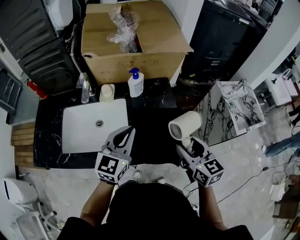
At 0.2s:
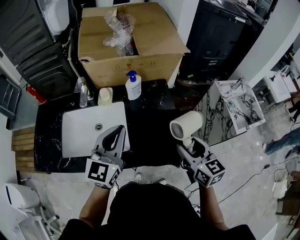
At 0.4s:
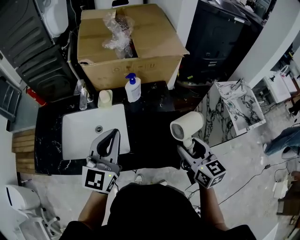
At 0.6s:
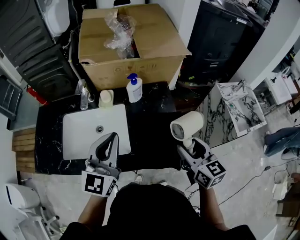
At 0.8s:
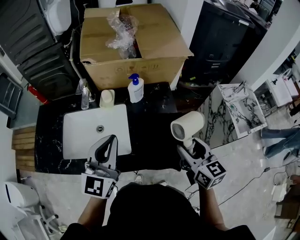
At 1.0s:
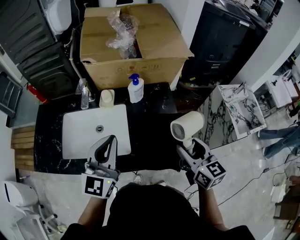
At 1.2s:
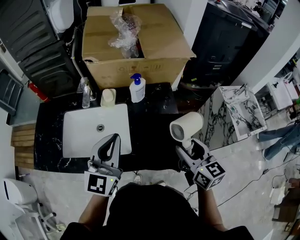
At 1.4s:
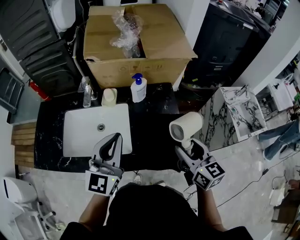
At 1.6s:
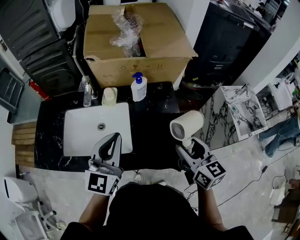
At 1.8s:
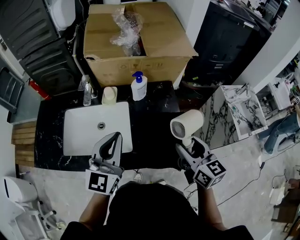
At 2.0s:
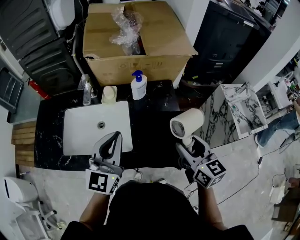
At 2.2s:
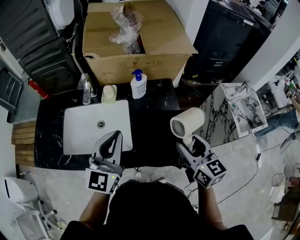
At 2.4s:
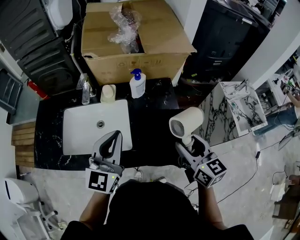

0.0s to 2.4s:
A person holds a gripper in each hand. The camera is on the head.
0.0s to 1.2s: The left gripper goes roughly 10 cm upward and to the left.
1.2s to 2.4s: Neither gripper changes place.

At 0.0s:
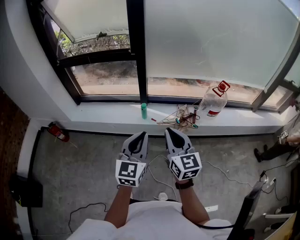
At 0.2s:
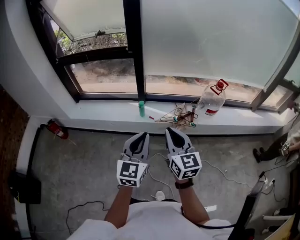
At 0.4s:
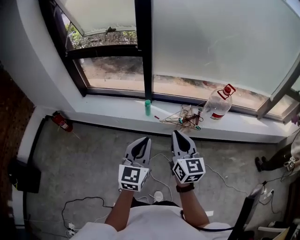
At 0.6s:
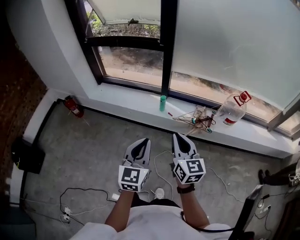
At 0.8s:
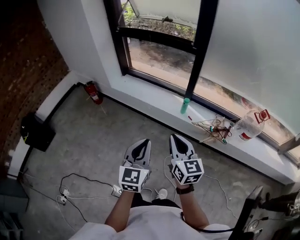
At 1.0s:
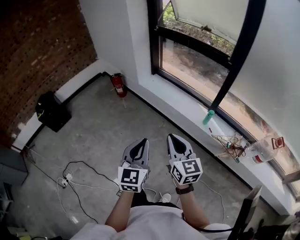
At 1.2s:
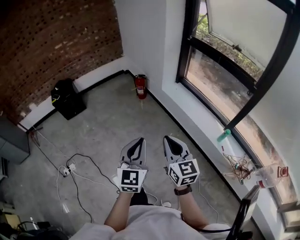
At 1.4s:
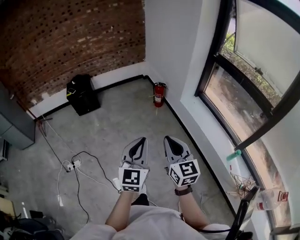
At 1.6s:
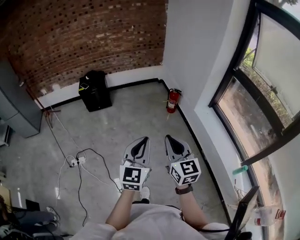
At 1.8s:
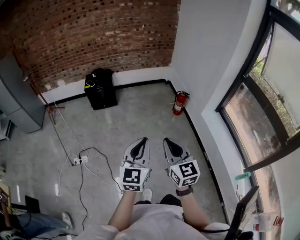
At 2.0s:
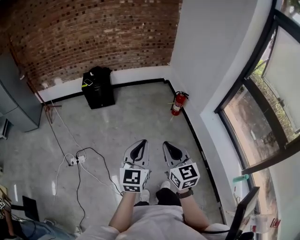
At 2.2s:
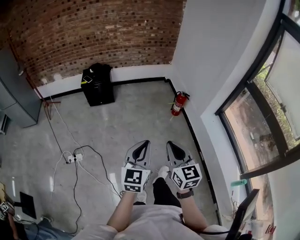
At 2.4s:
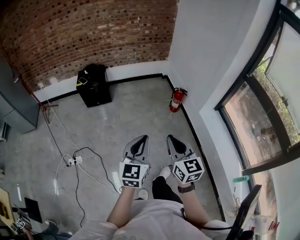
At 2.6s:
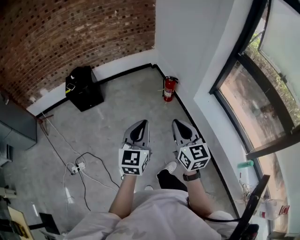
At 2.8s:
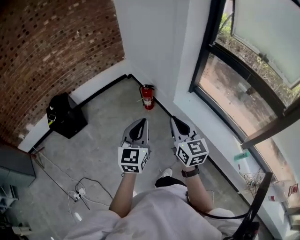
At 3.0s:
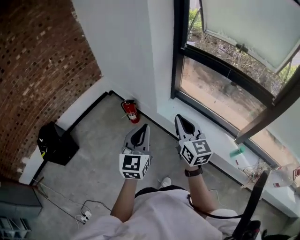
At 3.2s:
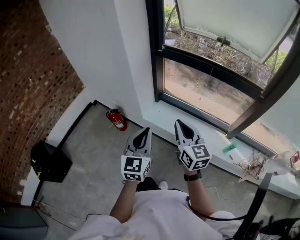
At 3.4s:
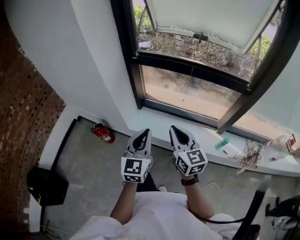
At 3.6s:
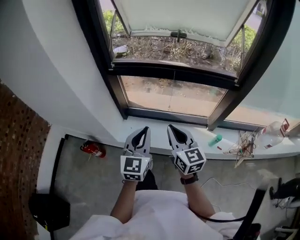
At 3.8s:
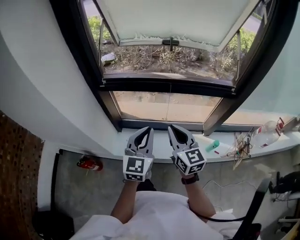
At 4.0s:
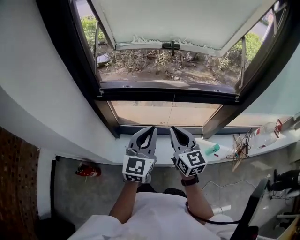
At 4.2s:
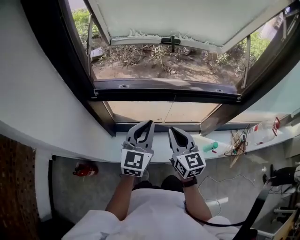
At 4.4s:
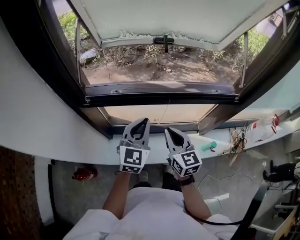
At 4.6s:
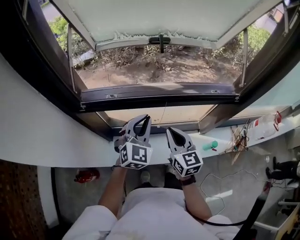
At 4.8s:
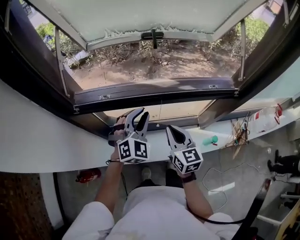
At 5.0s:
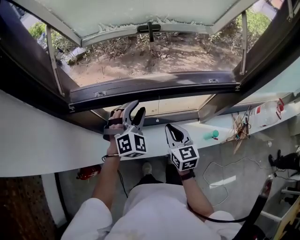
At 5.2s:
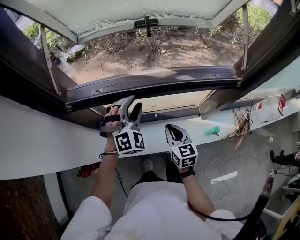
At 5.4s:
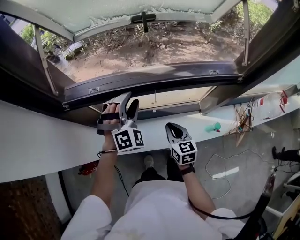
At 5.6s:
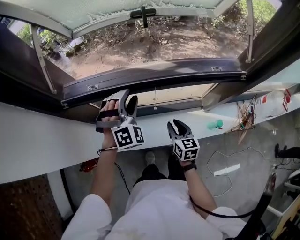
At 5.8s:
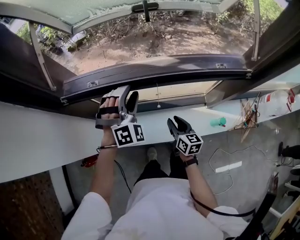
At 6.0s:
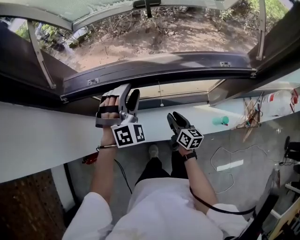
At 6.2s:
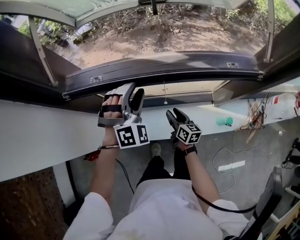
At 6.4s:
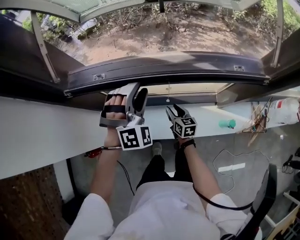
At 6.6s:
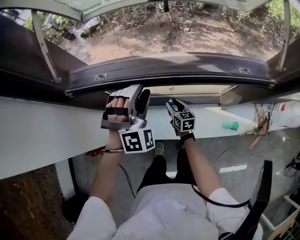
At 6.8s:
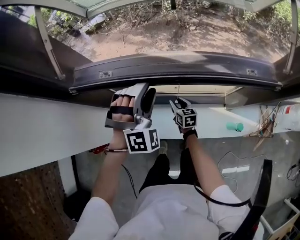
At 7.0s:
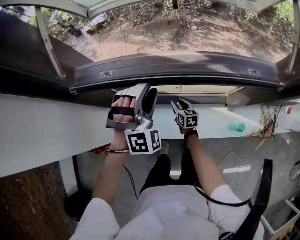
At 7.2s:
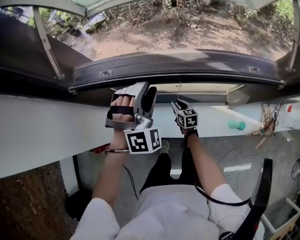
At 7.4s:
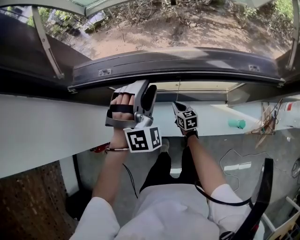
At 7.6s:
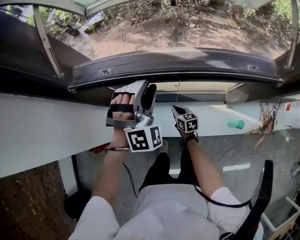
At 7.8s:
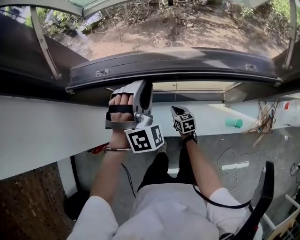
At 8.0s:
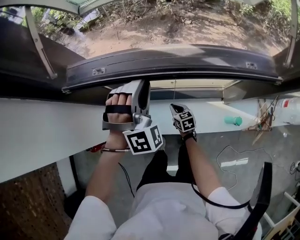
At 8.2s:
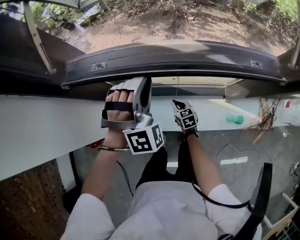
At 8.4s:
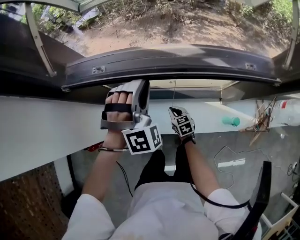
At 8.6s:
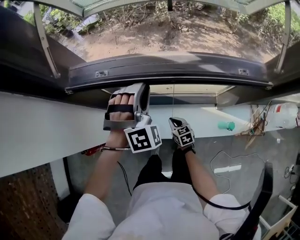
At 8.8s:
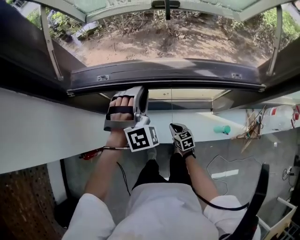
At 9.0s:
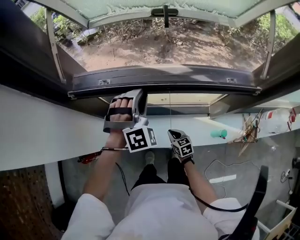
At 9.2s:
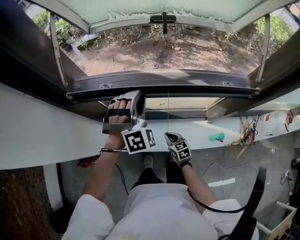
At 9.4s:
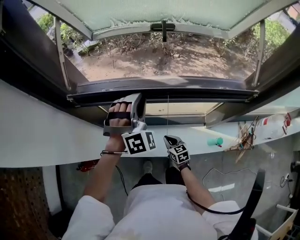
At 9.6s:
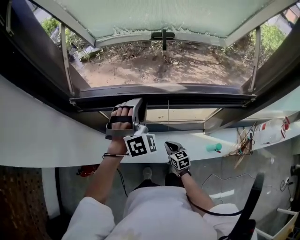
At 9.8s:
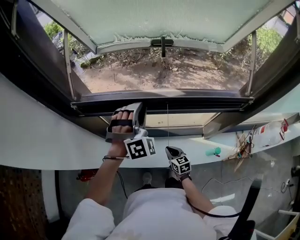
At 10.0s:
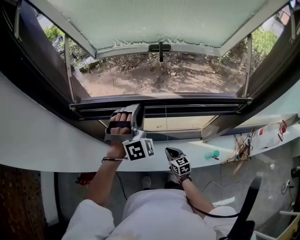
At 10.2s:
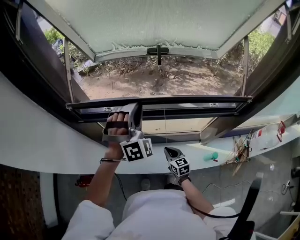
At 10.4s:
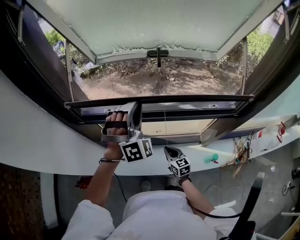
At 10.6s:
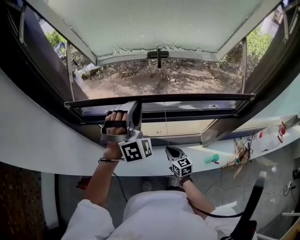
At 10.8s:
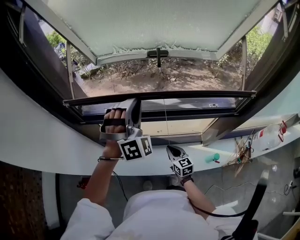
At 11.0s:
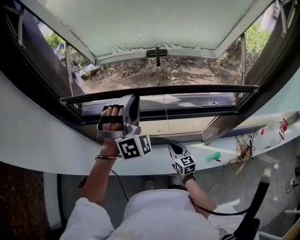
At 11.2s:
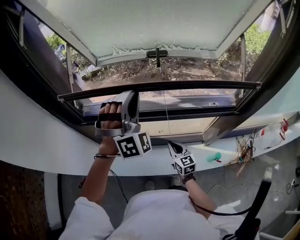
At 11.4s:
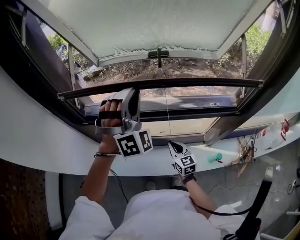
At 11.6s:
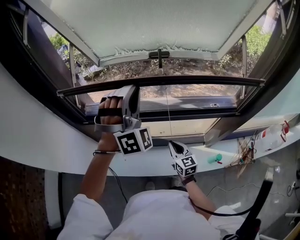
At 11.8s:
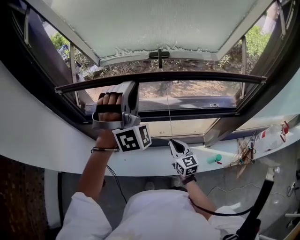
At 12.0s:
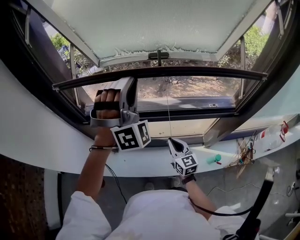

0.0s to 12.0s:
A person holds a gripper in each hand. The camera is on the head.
0.0s to 1.6s: The pair of grippers is taken some 60 cm. The right gripper swivels some 70 degrees. Meanwhile the left gripper turns by approximately 70 degrees.
1.6s to 3.0s: The two grippers travel together, roughly 50 cm. The right gripper changes its angle by roughly 30 degrees, while the left gripper rotates roughly 30 degrees.
3.0s to 4.4s: The pair of grippers is taken some 50 cm. The left gripper swivels roughly 50 degrees; the right gripper swivels about 40 degrees.
4.4s to 6.0s: The right gripper travels downward by roughly 25 cm, swivels some 40 degrees, and opens its fingers; the left gripper shifts roughly 15 cm forward and downward, rotates around the line of its fingers by approximately 60 degrees, clockwise from behind, and opens.
6.0s to 7.6s: The right gripper is displaced downward, to the left and forward by about 15 cm, changes its angle by roughly 30 degrees, and closes its fingers.
7.6s to 9.0s: The left gripper closes up; the right gripper shifts roughly 10 cm backward.
9.0s to 10.4s: Both grippers move upward, approximately 10 cm.
10.4s to 12.0s: The grippers both shift upward by about 15 cm.

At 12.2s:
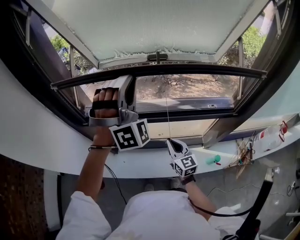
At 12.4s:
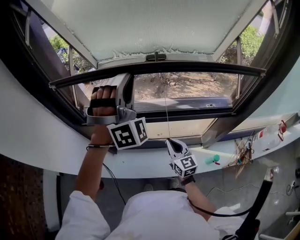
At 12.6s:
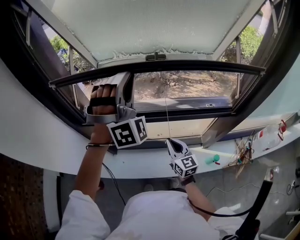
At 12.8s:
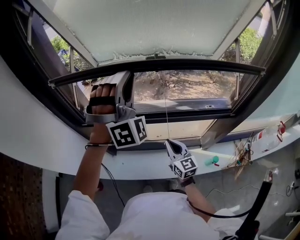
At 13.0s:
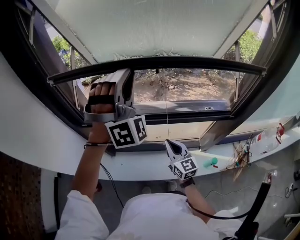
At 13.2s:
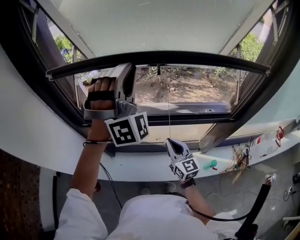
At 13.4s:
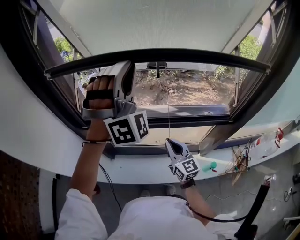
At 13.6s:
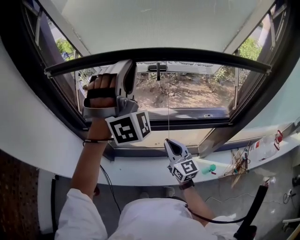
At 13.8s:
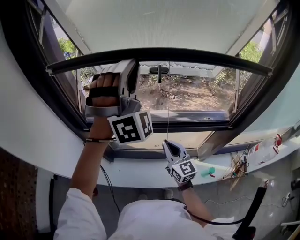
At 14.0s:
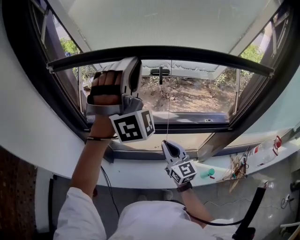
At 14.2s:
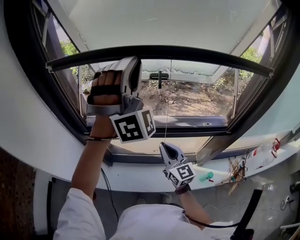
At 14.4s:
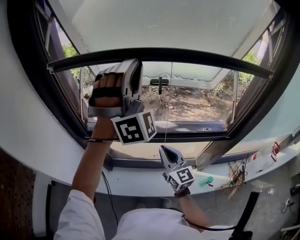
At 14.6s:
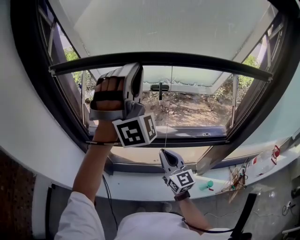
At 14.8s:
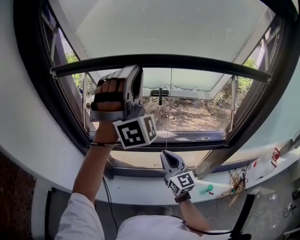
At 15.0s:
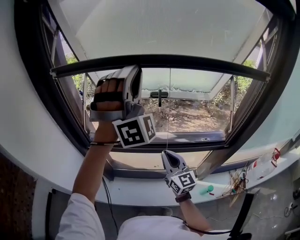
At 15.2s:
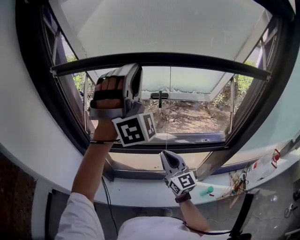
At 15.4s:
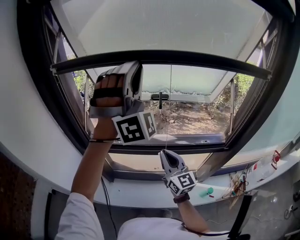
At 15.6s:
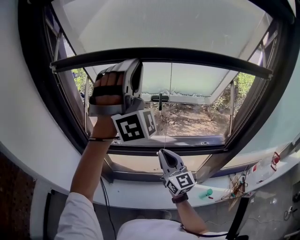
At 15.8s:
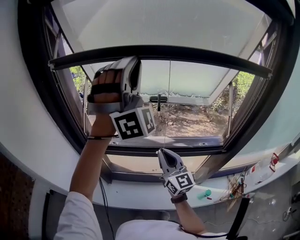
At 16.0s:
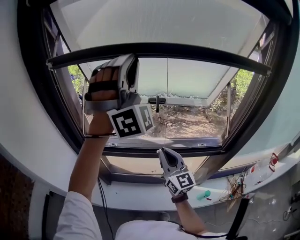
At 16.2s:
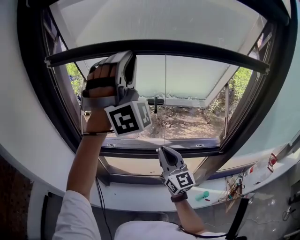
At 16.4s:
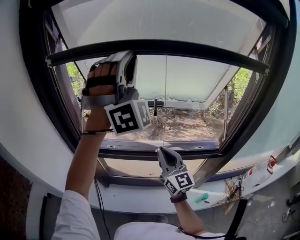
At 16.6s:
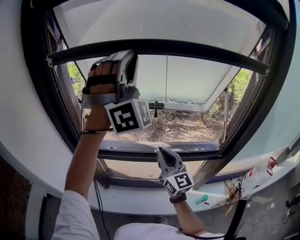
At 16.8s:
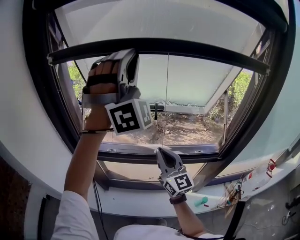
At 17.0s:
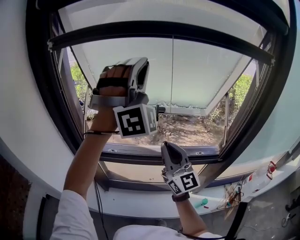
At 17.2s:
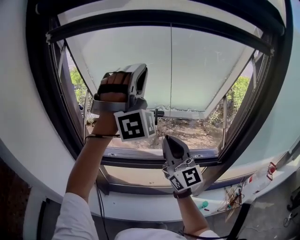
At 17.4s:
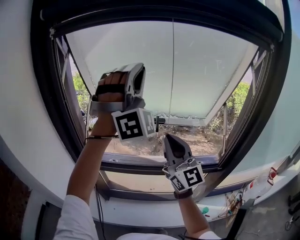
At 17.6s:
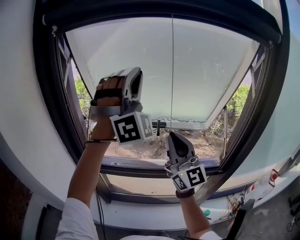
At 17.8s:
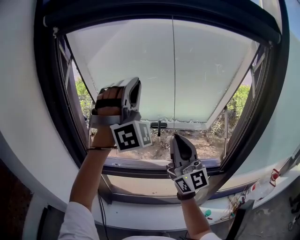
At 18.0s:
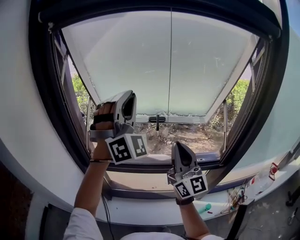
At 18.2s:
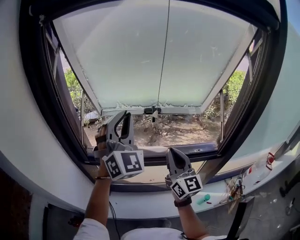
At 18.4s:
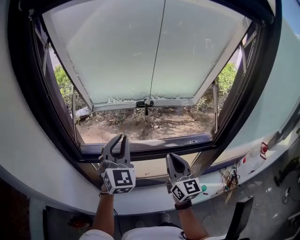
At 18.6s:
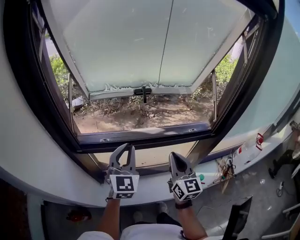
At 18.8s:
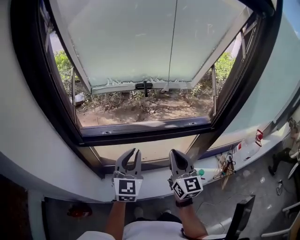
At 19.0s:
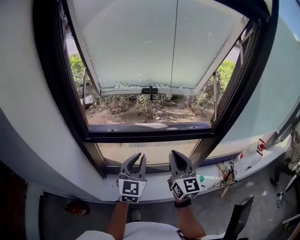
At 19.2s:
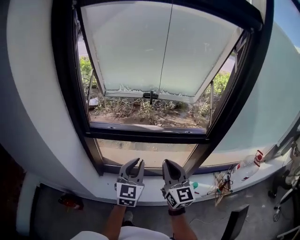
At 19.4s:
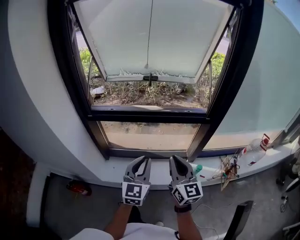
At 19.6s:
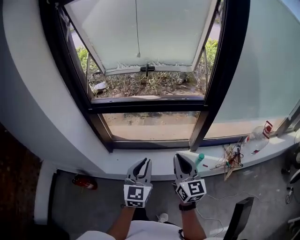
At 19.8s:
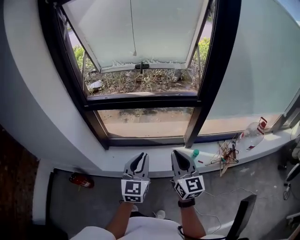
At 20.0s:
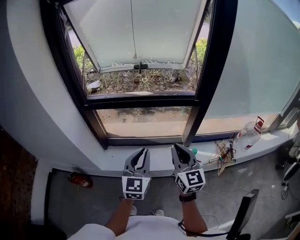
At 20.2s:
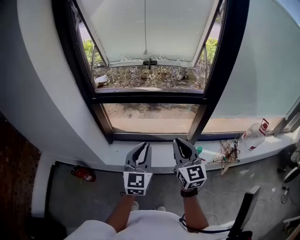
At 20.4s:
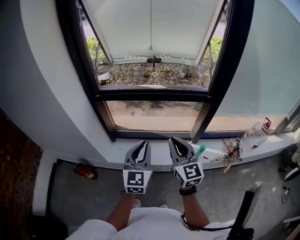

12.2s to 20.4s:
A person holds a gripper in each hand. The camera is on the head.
12.2s to 13.8s: Both grippers travel together upward, roughly 10 cm.
13.8s to 15.4s: Both grippers travel together upward, some 10 cm.
15.4s to 17.2s: The left gripper goes approximately 5 cm upward; the right gripper shifts about 20 cm upward, and swivels approximately 20 degrees.
17.2s to 18.8s: The left gripper is displaced downward by some 35 cm, and twists about 80 degrees counterclockwise, seen from behind. Meanwhile the right gripper is displaced downward and backward by roughly 20 cm, and changes its angle by roughly 30 degrees.
18.8s to 20.4s: The two grippers go roughly 25 cm backward.

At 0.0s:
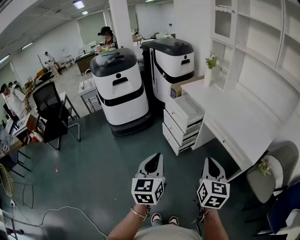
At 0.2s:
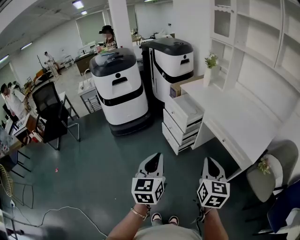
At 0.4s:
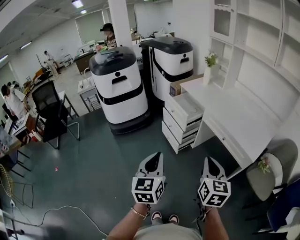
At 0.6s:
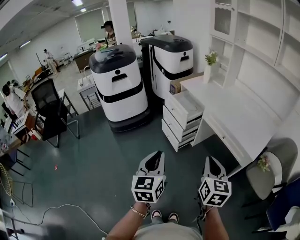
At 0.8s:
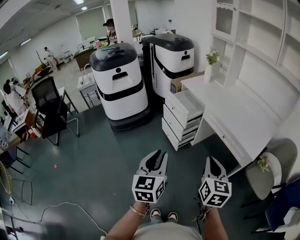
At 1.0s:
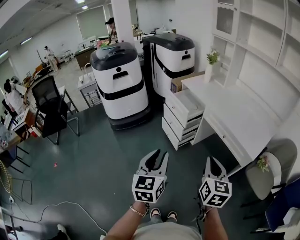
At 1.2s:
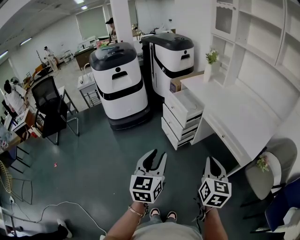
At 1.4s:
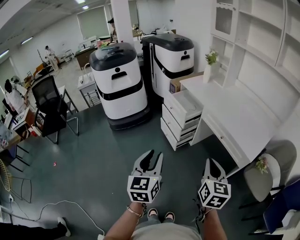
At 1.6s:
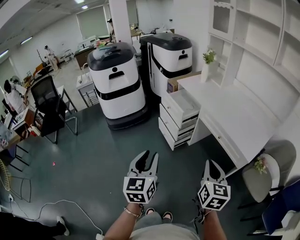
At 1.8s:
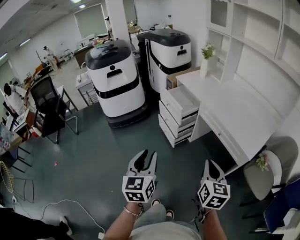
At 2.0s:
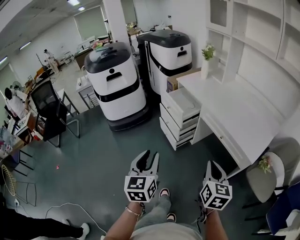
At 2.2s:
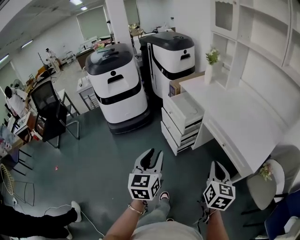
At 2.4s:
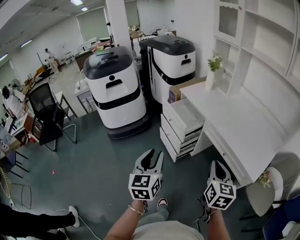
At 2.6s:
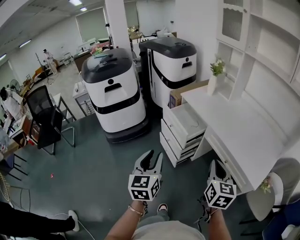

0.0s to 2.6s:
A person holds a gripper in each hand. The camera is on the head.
0.0s to 1.2s: The left gripper opens.
1.2s to 2.6s: The two grippers go approximately 20 cm forward.
